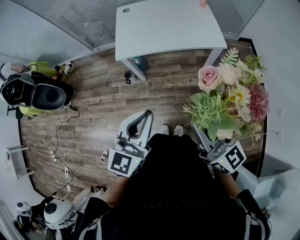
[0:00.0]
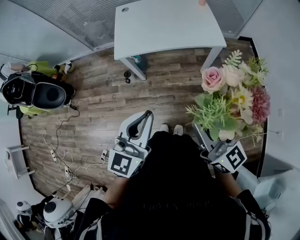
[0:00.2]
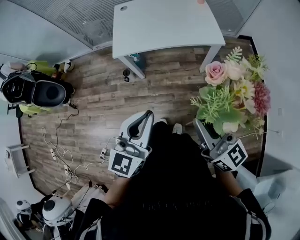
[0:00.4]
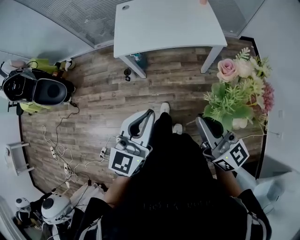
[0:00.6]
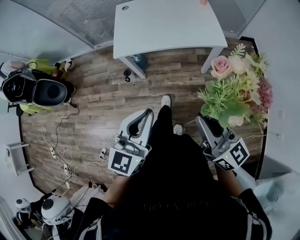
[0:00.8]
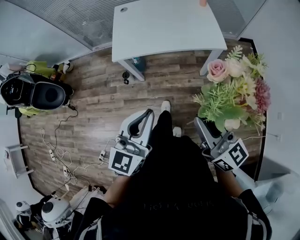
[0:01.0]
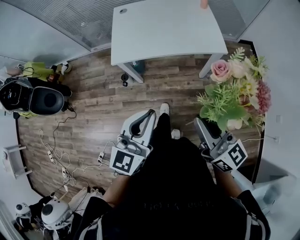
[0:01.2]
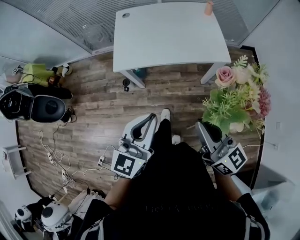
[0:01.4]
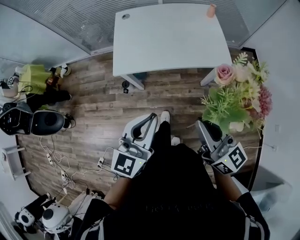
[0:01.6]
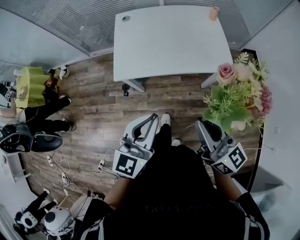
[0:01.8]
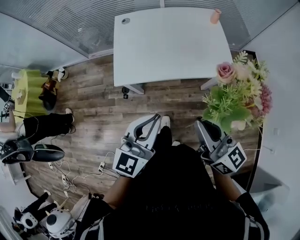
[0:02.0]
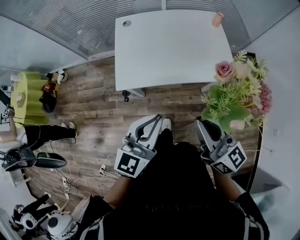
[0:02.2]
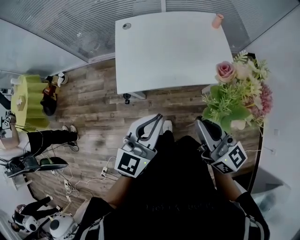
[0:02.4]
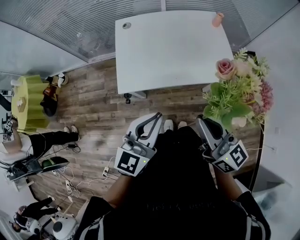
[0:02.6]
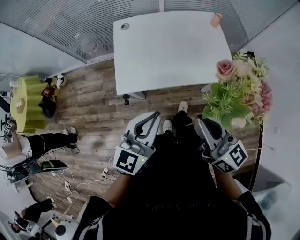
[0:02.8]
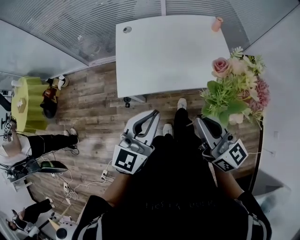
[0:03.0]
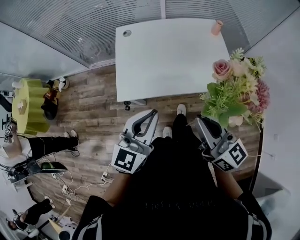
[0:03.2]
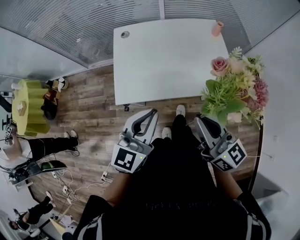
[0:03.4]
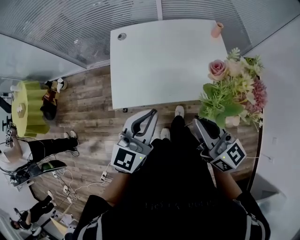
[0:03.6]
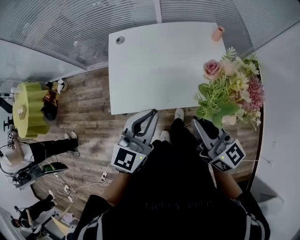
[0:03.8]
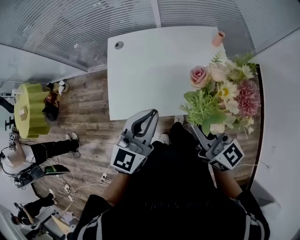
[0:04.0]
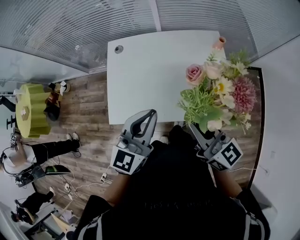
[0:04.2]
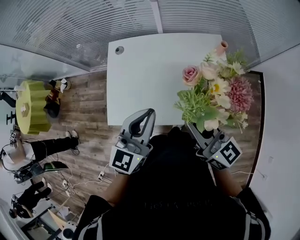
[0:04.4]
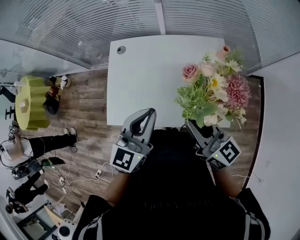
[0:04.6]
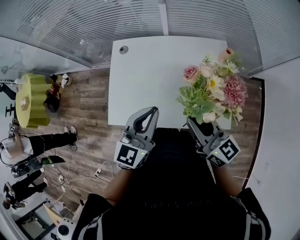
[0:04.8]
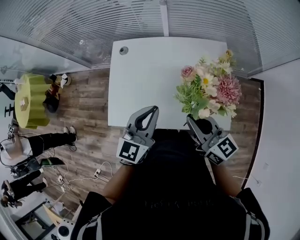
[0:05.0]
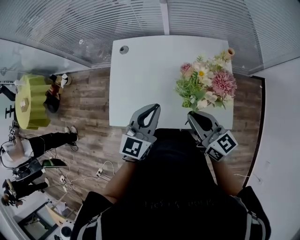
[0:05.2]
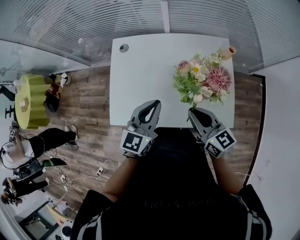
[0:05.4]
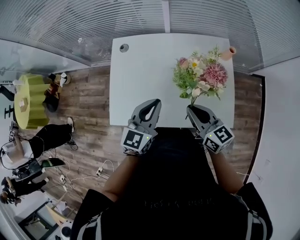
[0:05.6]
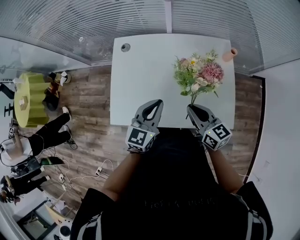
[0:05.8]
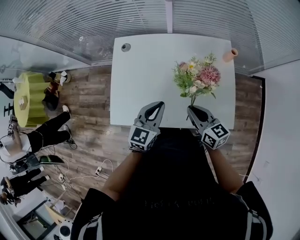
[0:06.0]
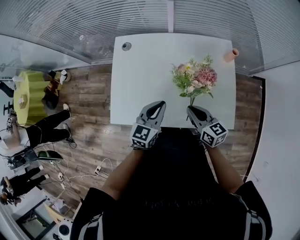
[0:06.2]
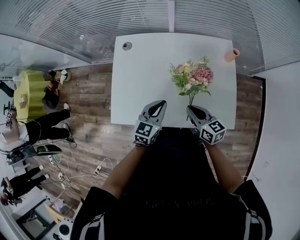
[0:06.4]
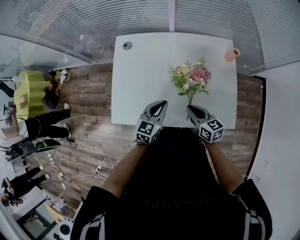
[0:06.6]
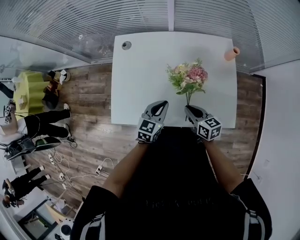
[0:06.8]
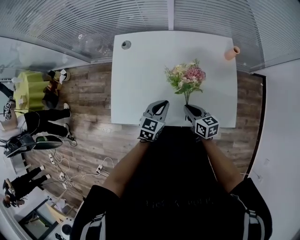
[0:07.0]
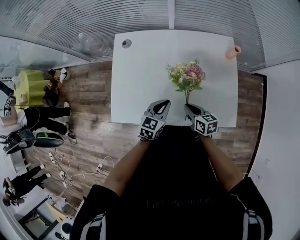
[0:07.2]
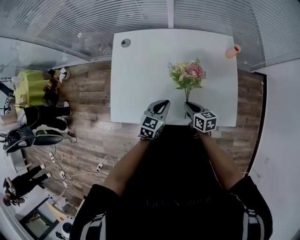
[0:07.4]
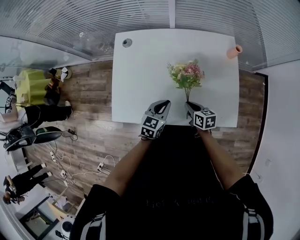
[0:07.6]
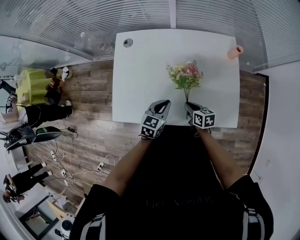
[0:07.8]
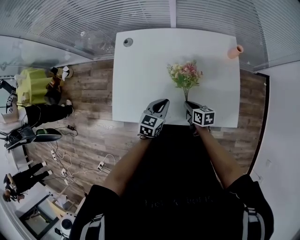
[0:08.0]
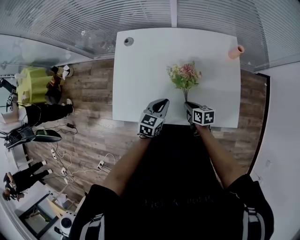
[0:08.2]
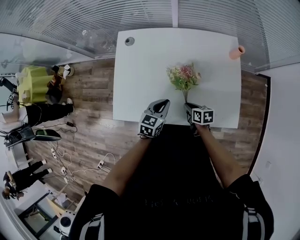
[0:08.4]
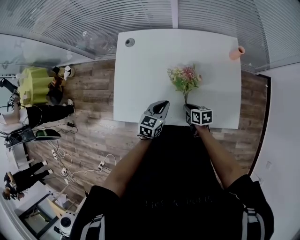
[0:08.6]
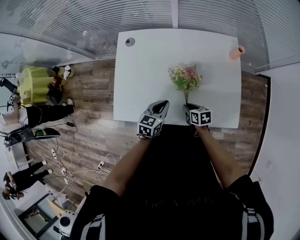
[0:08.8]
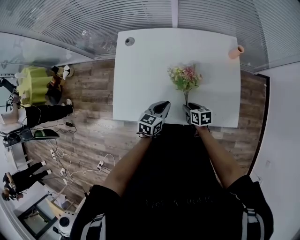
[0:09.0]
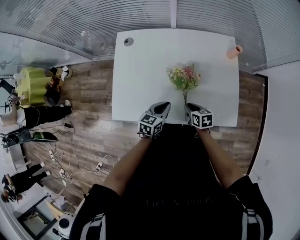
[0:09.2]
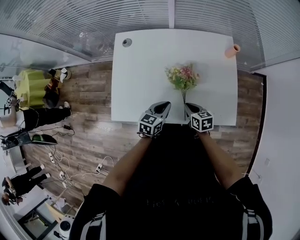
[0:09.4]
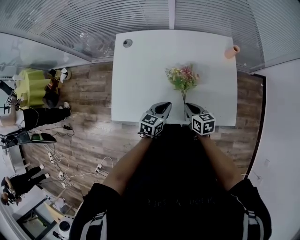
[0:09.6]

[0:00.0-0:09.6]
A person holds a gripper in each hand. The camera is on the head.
0:00.0 to 0:01.6: The two grippers go approximately 15 cm forward.
0:01.6 to 0:03.2: Both grippers travel together forward, about 15 cm.
0:03.2 to 0:04.8: The right gripper goes about 20 cm forward; the left gripper goes approximately 20 cm forward and to the right.
0:04.8 to 0:06.4: The two grippers go about 20 cm downward. The right gripper turns by approximately 20 degrees.
0:06.4 to 0:08.0: The left gripper travels downward by roughly 5 cm; the right gripper travels downward by roughly 15 cm, and turns by some 20 degrees.
0:08.0 to 0:09.6: The right gripper goes about 5 cm upward.

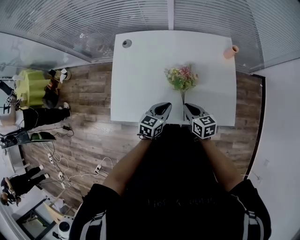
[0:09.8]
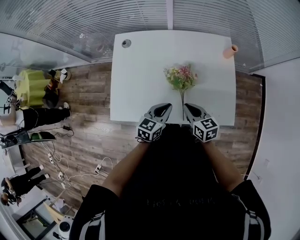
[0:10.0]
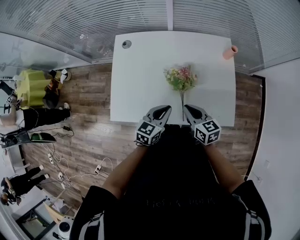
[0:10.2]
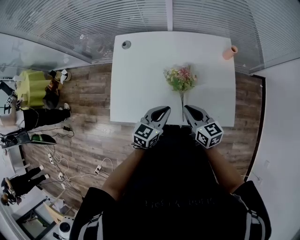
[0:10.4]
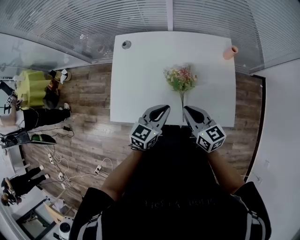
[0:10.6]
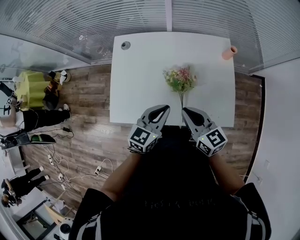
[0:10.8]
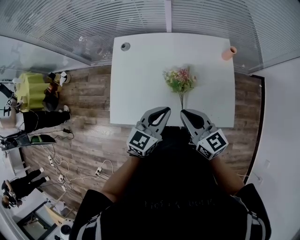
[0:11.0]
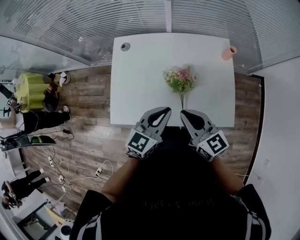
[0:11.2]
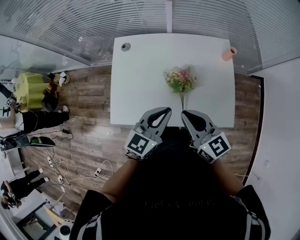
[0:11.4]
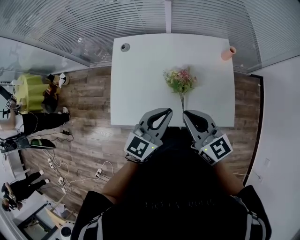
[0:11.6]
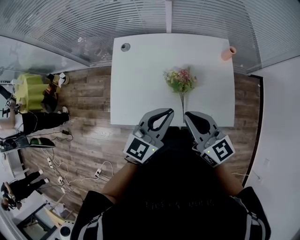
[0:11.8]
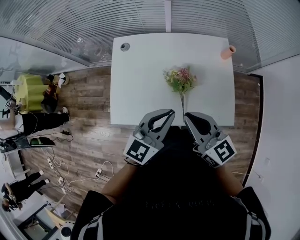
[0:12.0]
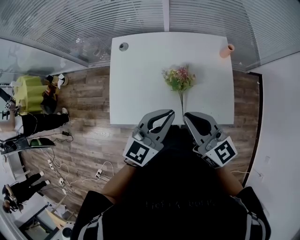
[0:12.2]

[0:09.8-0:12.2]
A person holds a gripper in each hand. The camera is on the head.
0:09.8 to 0:11.0: Both grippers travel together upward, about 15 cm. The right gripper changes its angle by approximately 20 degrees.
0:11.0 to 0:12.2: Both grippers move upward, approximately 10 cm.

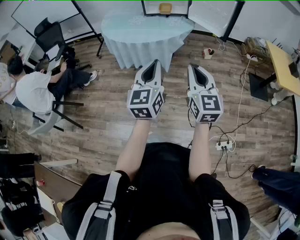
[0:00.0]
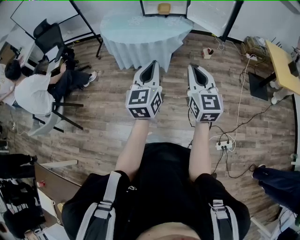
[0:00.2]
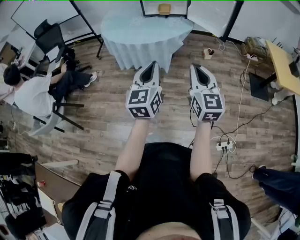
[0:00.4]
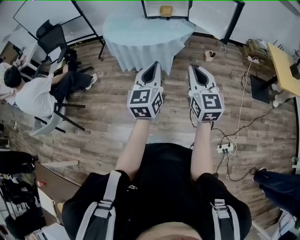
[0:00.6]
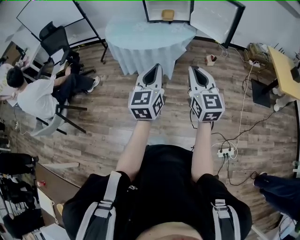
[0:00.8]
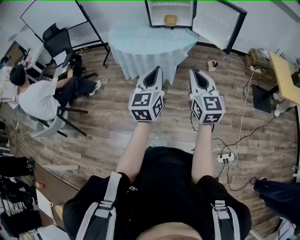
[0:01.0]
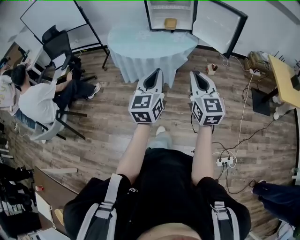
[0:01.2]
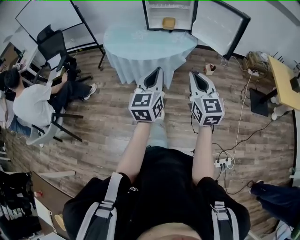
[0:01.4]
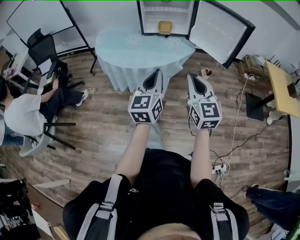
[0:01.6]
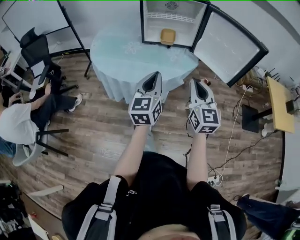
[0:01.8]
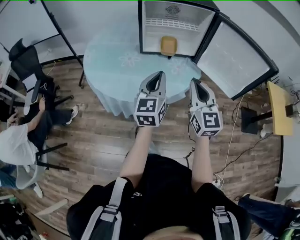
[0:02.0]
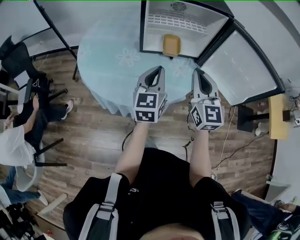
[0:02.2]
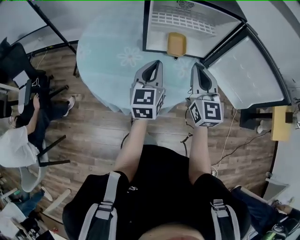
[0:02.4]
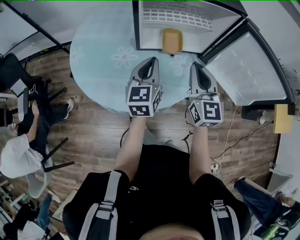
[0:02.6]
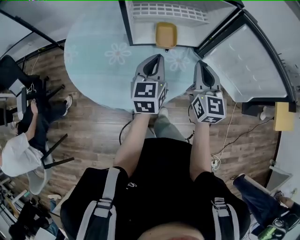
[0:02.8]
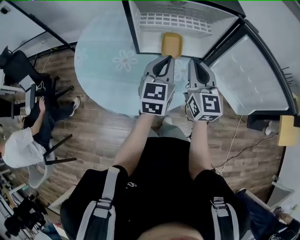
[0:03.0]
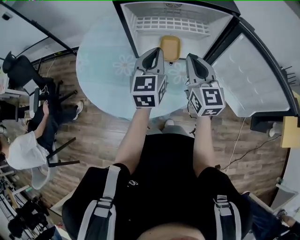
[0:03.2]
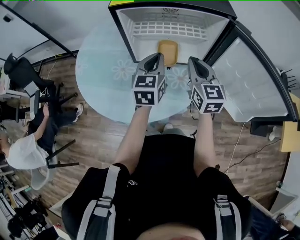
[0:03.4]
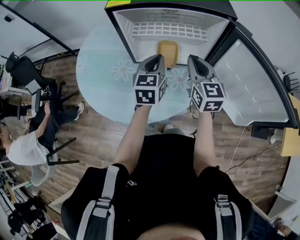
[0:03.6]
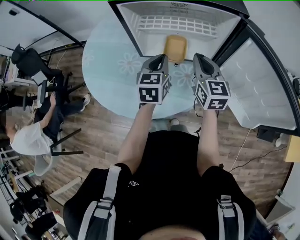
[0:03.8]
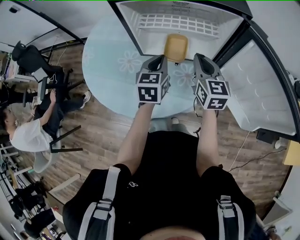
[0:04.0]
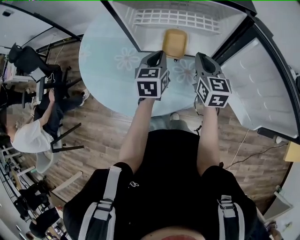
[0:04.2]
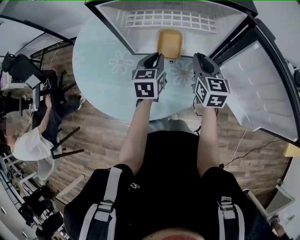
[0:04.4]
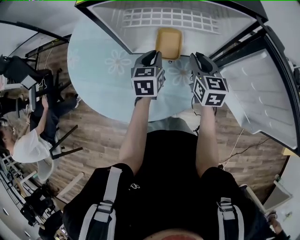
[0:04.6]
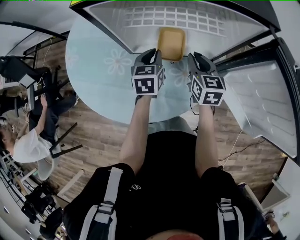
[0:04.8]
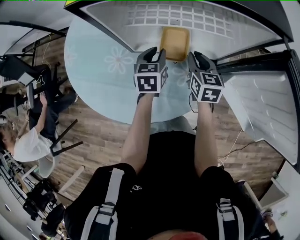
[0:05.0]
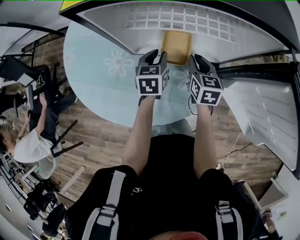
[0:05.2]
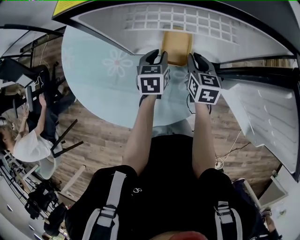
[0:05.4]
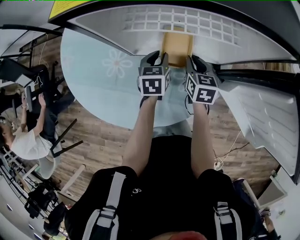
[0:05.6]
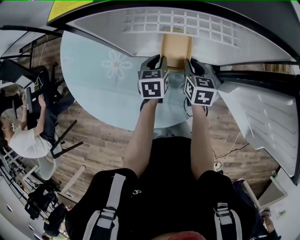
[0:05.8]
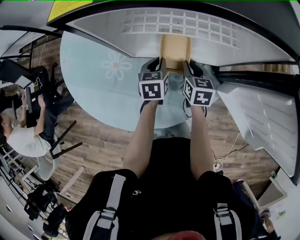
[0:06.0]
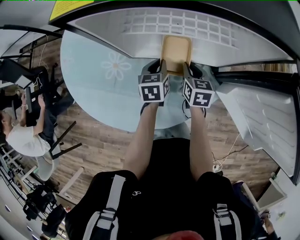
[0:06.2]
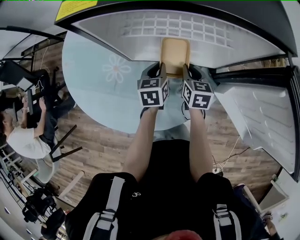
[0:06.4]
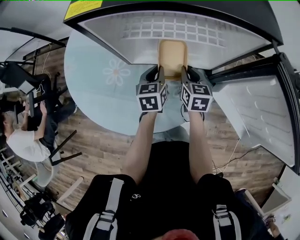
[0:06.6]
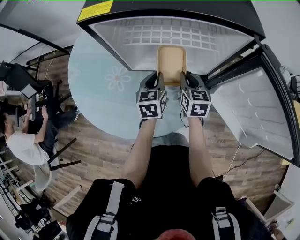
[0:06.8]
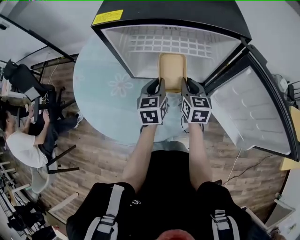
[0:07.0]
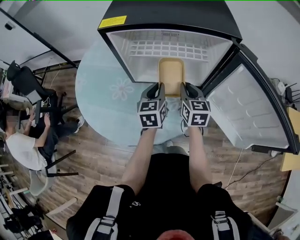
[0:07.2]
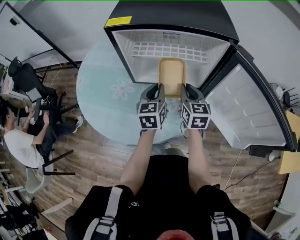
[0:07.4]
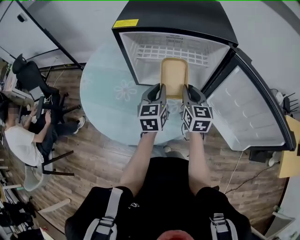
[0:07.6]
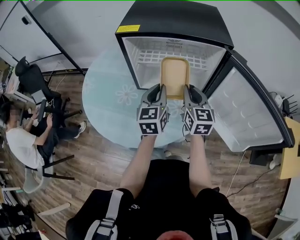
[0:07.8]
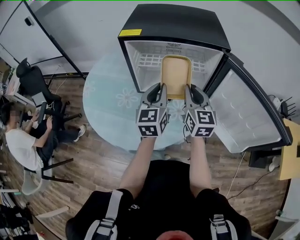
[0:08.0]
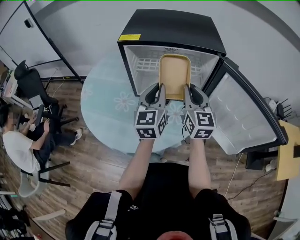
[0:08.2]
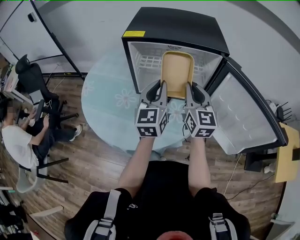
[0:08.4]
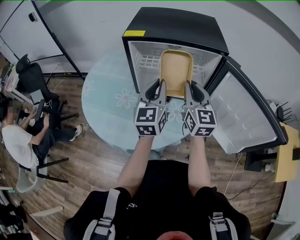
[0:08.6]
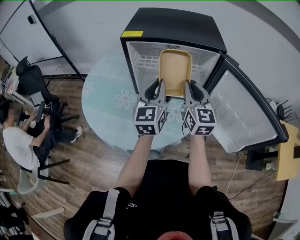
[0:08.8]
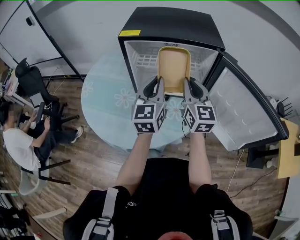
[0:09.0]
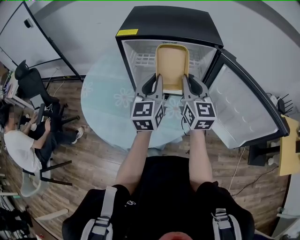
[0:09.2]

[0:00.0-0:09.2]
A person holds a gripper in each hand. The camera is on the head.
0:00.0 to 0:01.6: The two grippers go roughly 20 cm forward.
0:01.6 to 0:03.0: The two grippers travel together, forward, about 50 cm.
0:03.0 to 0:04.6: The right gripper heads downward, forward and to the right, covering about 20 cm, and turns by approximately 20 degrees. Meanwhile the left gripper is displaced downward and forward by roughly 20 cm, and swivels about 20 degrees.
0:04.6 to 0:06.2: Both grippers move downward, roughly 10 cm.
0:06.2 to 0:07.6: Both grippers move upward and backward, roughly 20 cm. The left gripper turns by approximately 30 degrees; the right gripper swivels some 30 degrees.
0:07.6 to 0:09.2: The two grippers go some 15 cm upward.

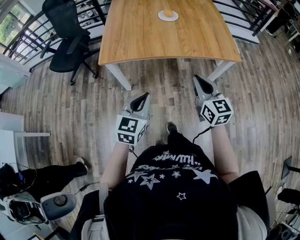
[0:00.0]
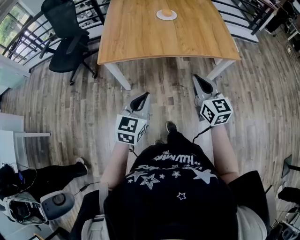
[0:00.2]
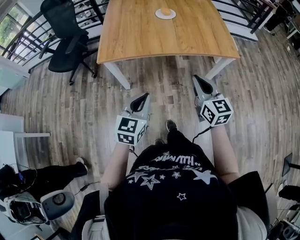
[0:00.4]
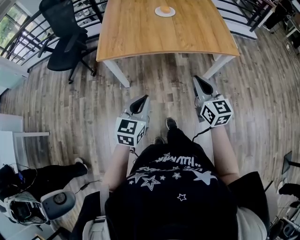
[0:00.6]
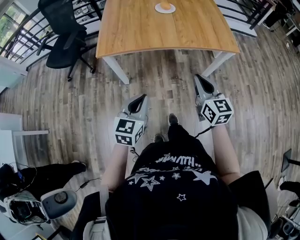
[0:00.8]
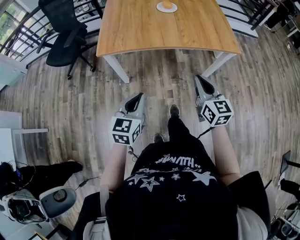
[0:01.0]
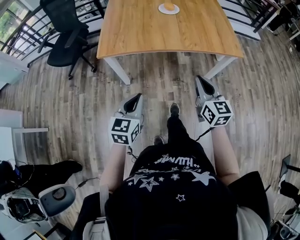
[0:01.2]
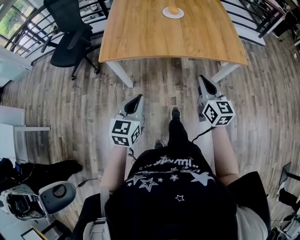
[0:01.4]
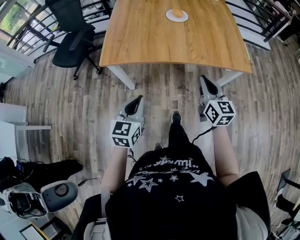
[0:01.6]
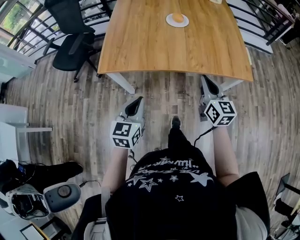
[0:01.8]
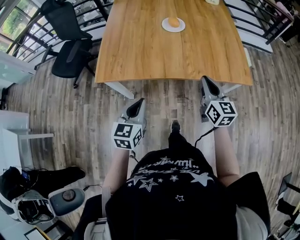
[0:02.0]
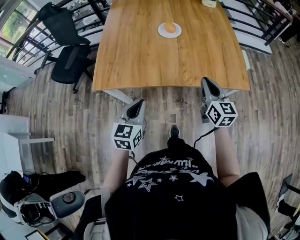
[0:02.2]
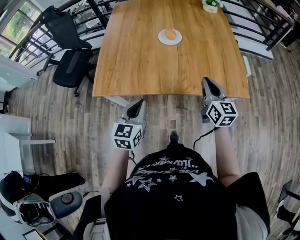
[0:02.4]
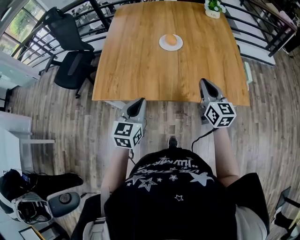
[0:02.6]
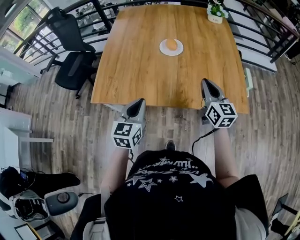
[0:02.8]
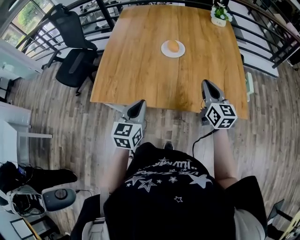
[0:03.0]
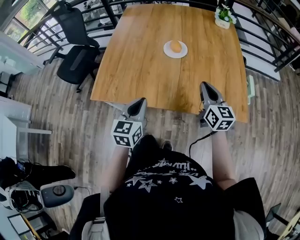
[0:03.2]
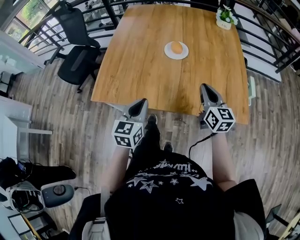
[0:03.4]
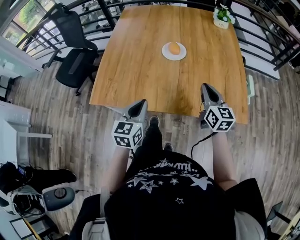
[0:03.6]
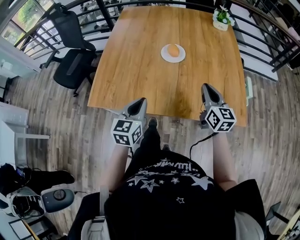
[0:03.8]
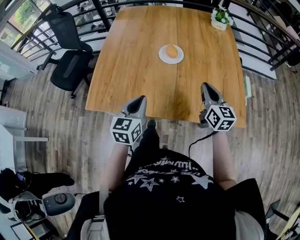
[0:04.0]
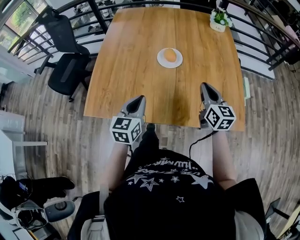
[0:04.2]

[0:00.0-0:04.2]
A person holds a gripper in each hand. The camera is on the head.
0:00.0 to 0:01.4: The grippers make only small movements.
0:01.4 to 0:02.8: Both grippers move forward, roughly 30 cm.
0:02.8 to 0:04.2: The grippers both shift forward by about 10 cm.
